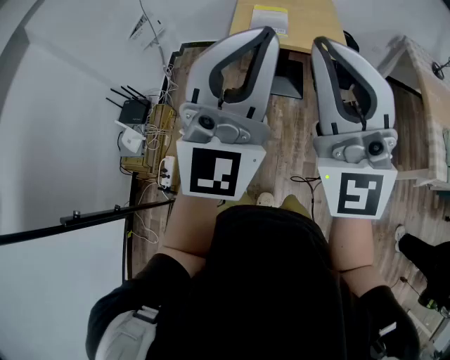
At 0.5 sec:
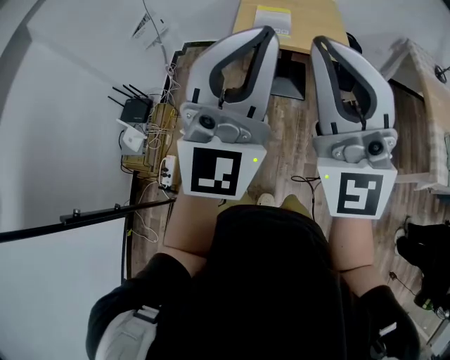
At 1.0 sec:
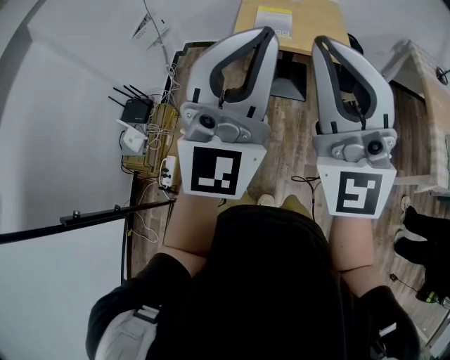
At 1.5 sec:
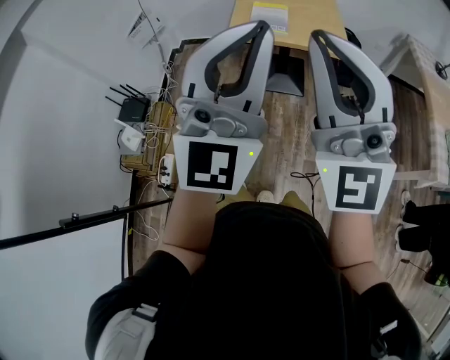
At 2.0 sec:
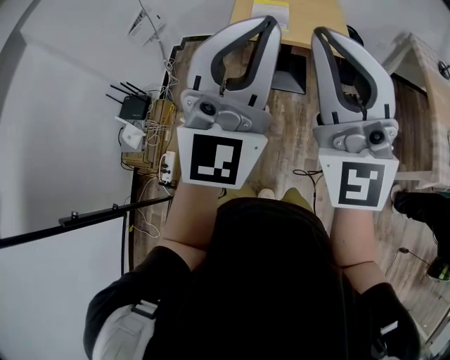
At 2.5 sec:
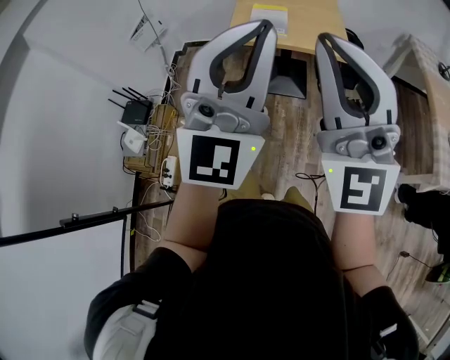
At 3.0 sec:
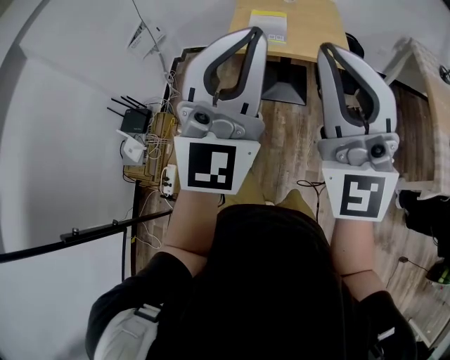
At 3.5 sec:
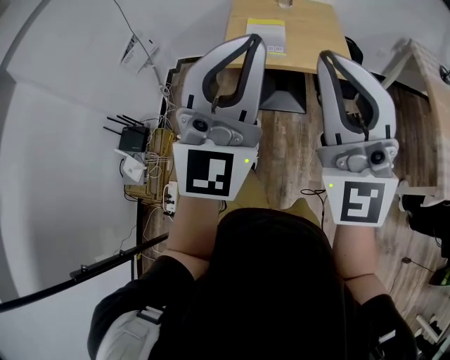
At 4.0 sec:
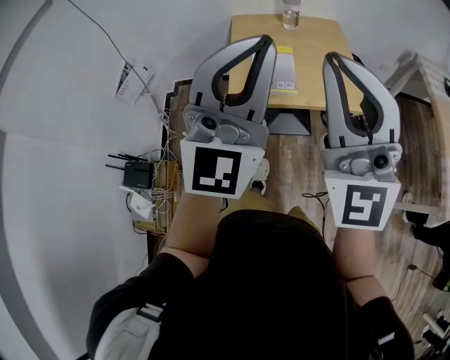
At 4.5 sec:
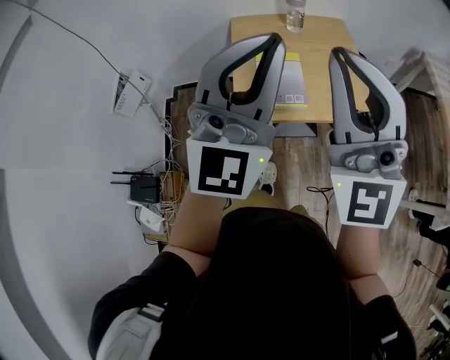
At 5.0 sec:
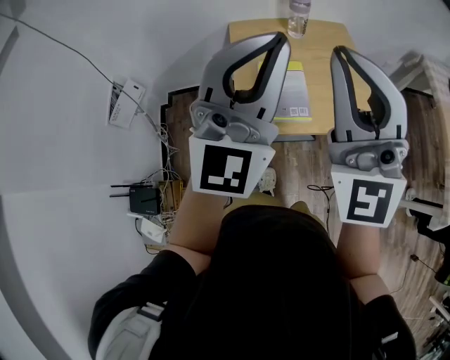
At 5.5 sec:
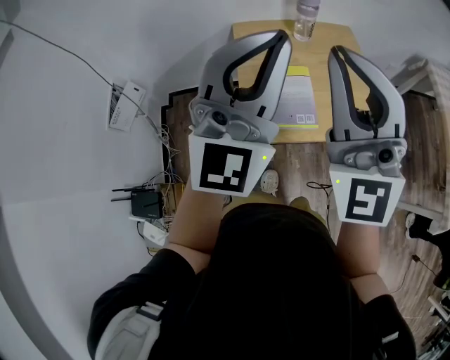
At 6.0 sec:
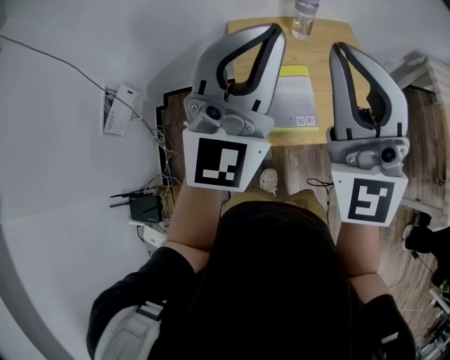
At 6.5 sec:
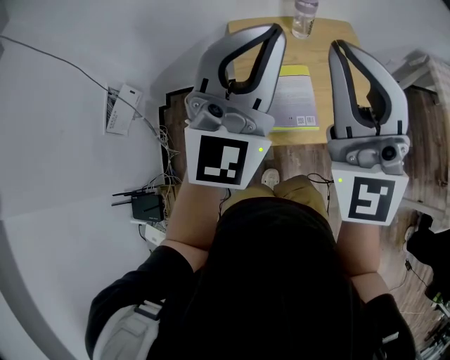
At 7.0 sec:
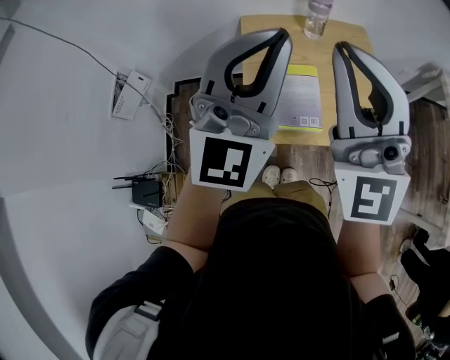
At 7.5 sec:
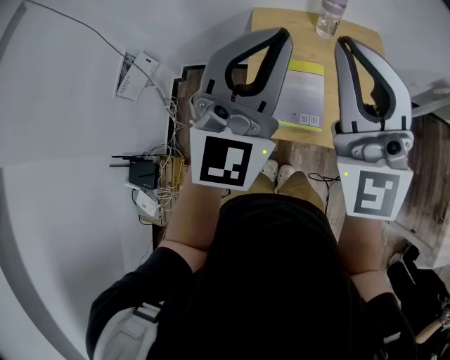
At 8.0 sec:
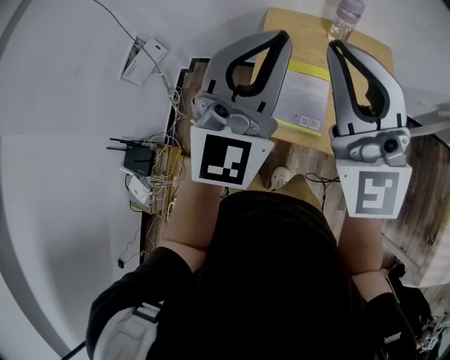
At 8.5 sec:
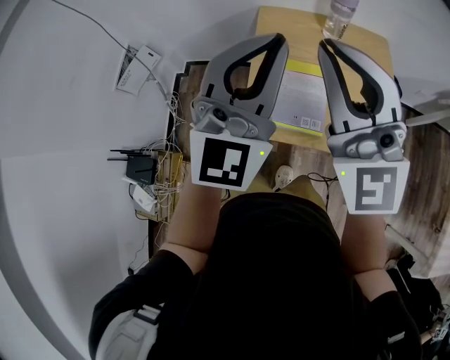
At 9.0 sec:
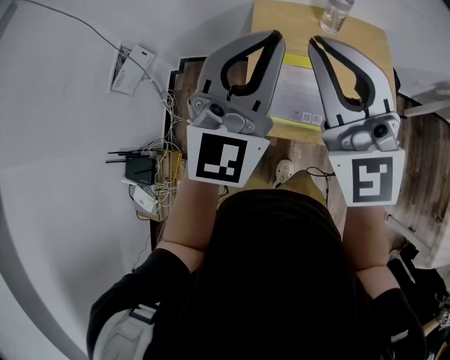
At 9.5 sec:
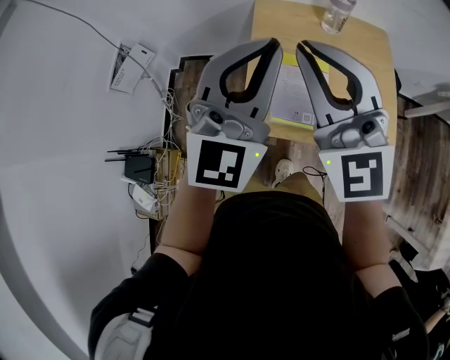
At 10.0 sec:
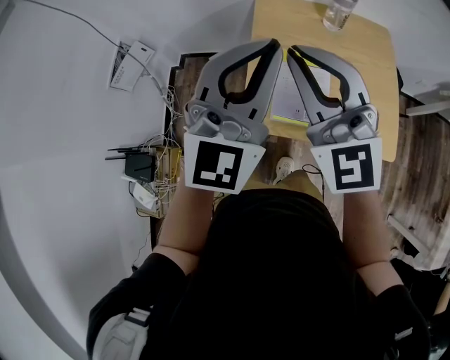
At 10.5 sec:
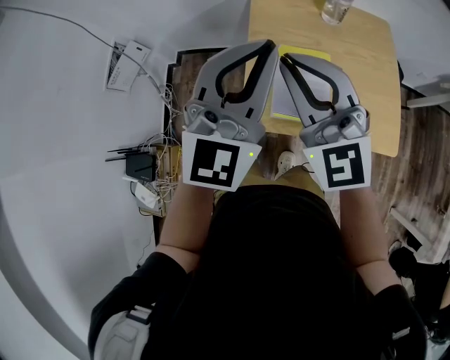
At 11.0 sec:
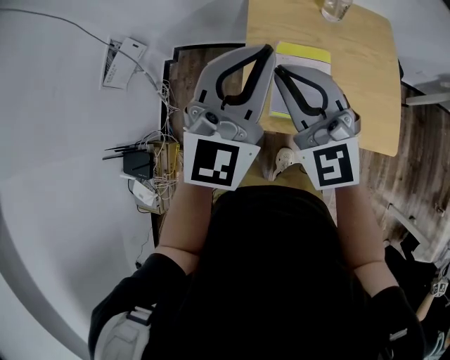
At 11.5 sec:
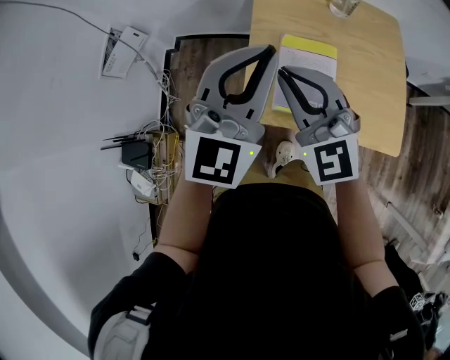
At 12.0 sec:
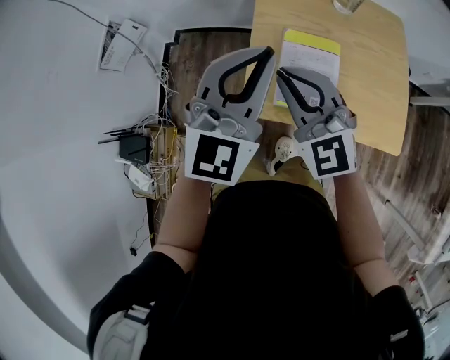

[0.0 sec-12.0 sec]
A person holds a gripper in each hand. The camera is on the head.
0.0 sec to 2.0 sec: The grippers make only small movements.
2.0 sec to 4.0 sec: Both grippers move forward, some 30 cm.
4.0 sec to 6.0 sec: Both grippers travel together forward and to the left, some 25 cm.
6.0 sec to 8.0 sec: The right gripper ends up approximately 5 cm from where it was, and changes its angle by some 20 degrees.
8.0 sec to 10.0 sec: The right gripper shifts roughly 10 cm downward and to the left, while the left gripper shifts some 5 cm downward.
10.0 sec to 12.0 sec: The left gripper moves downward, approximately 10 cm. The right gripper travels downward by some 15 cm, and changes its angle by about 20 degrees.

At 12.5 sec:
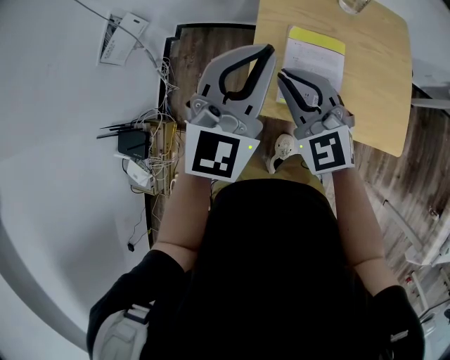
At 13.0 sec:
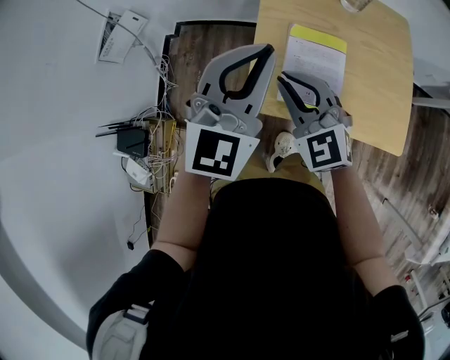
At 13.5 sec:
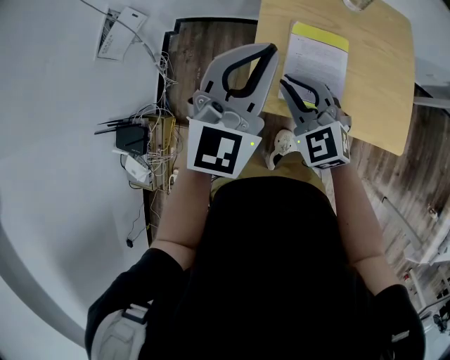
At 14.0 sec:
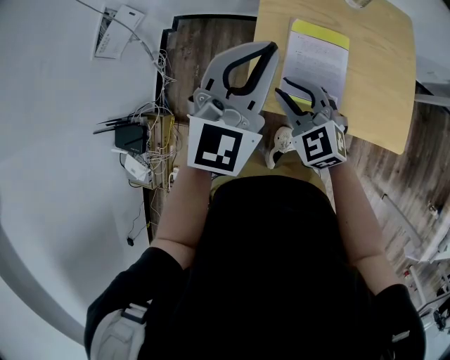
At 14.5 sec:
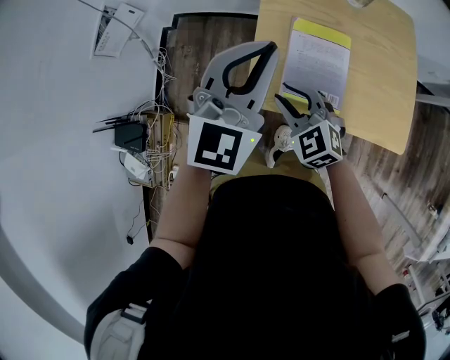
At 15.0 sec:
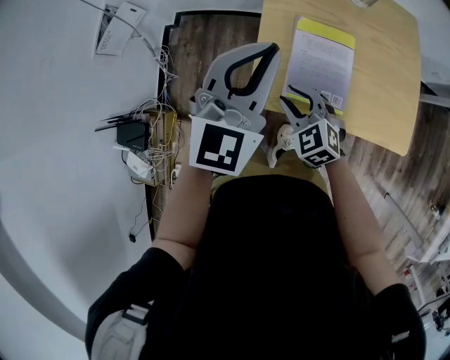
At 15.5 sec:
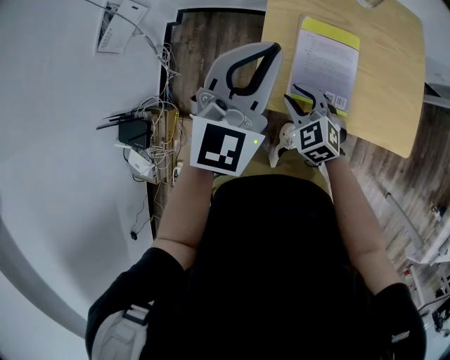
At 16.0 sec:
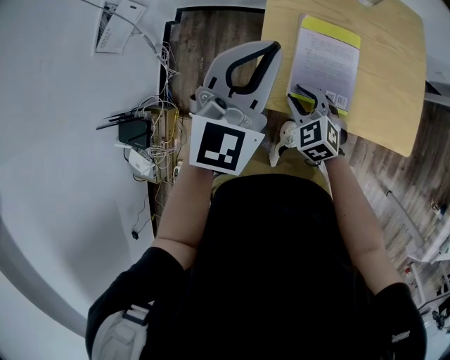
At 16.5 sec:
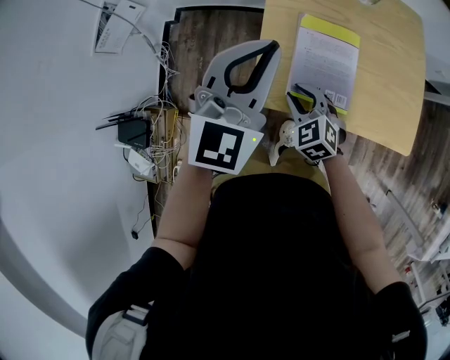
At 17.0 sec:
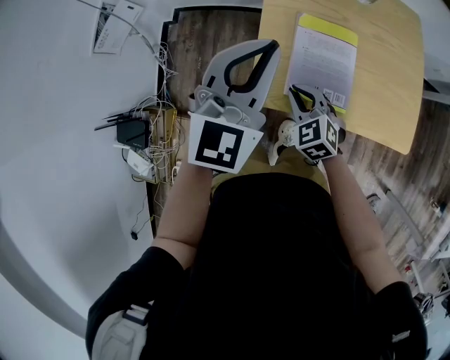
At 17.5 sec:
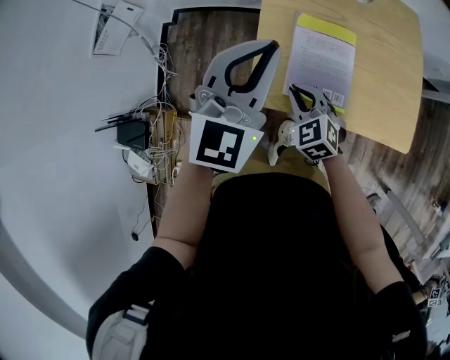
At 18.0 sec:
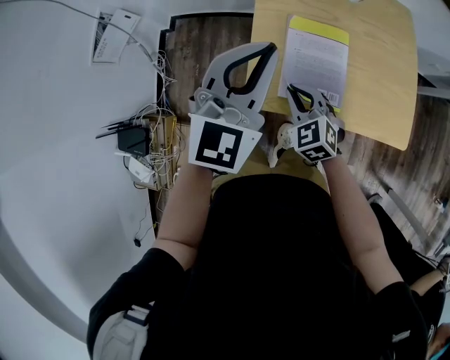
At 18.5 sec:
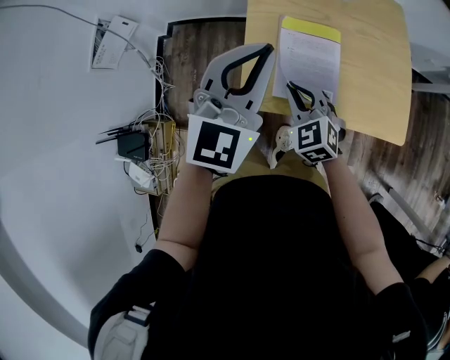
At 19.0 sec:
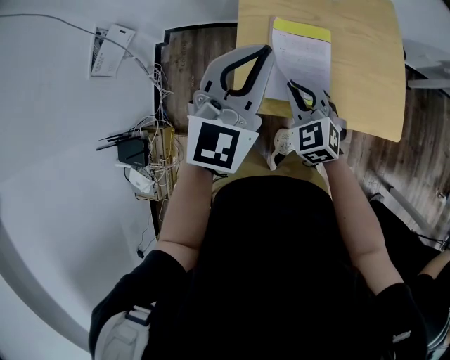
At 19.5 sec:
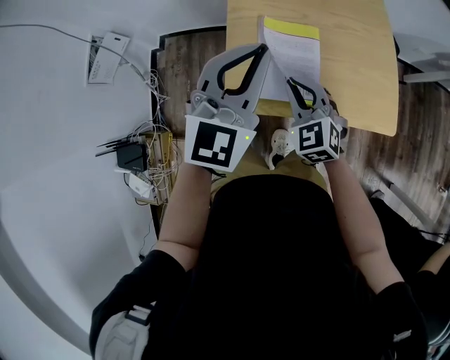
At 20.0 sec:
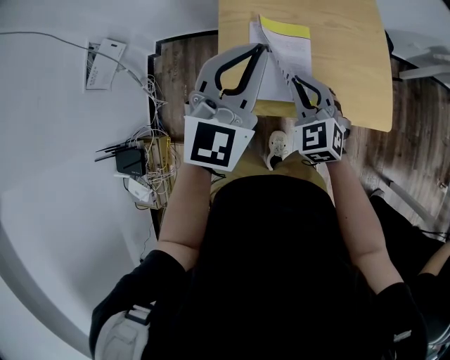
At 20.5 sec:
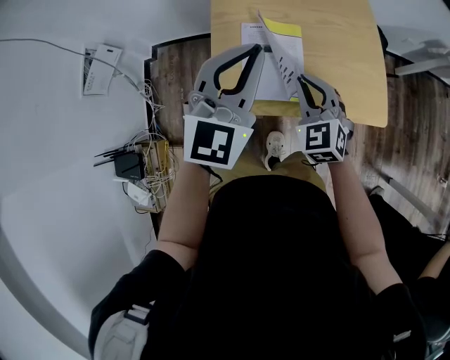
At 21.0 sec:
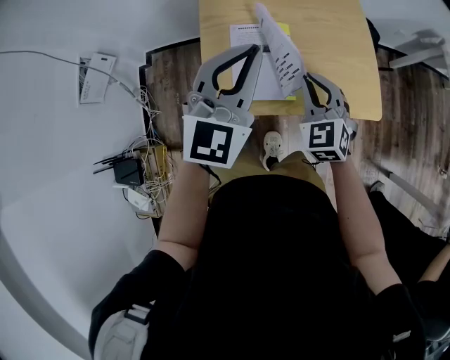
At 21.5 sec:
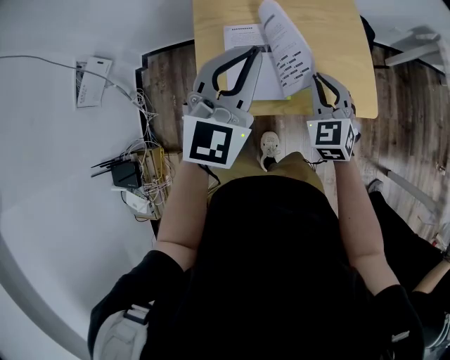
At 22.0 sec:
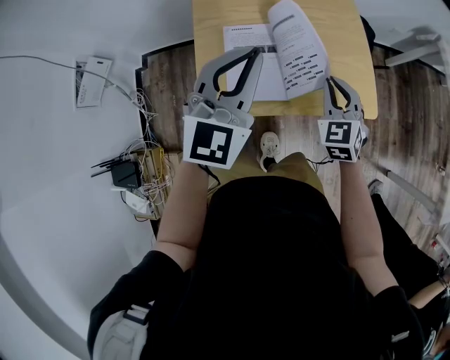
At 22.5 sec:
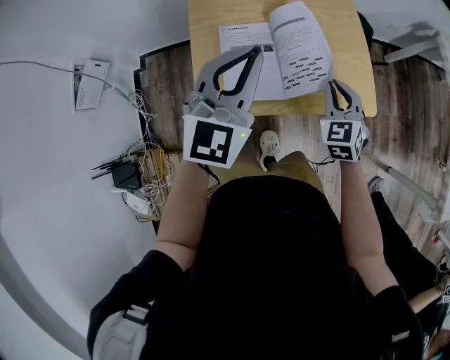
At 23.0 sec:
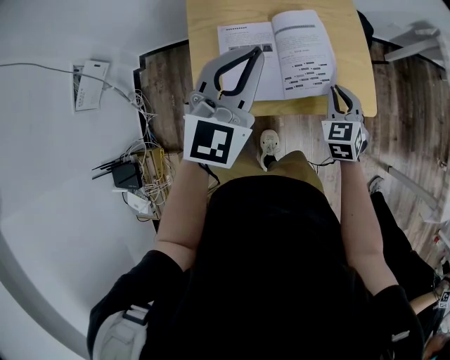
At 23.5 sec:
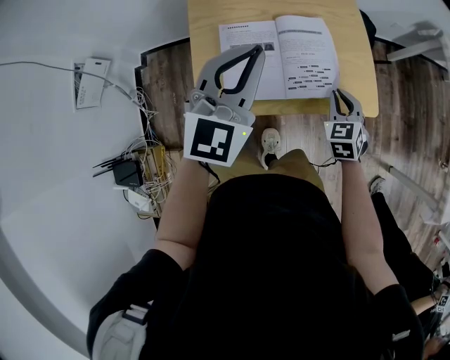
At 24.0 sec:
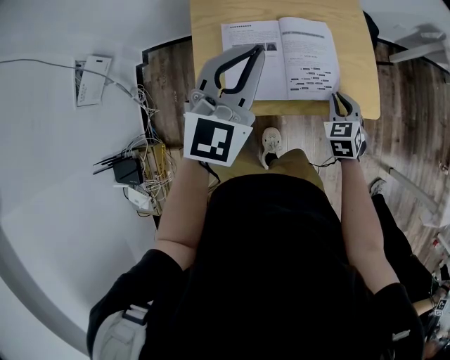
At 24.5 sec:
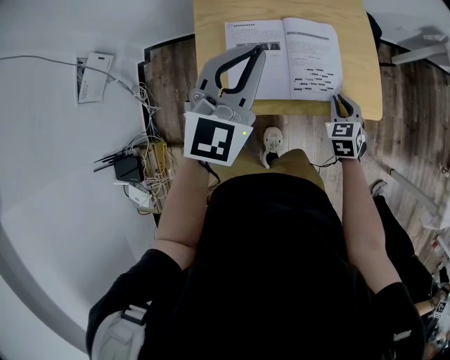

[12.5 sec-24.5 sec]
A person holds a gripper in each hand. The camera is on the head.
12.5 sec to 14.5 sec: The right gripper heads downward, covering about 15 cm, and opens its fingers.
14.5 sec to 16.5 sec: The right gripper heads downward, covering approximately 5 cm.
16.5 sec to 18.5 sec: The right gripper heads upward, covering roughly 5 cm, and closes up.
18.5 sec to 20.5 sec: The right gripper heads to the right and upward, covering roughly 15 cm, while the left gripper goes some 10 cm to the right.
20.5 sec to 22.5 sec: The right gripper is displaced to the right by some 15 cm.
22.5 sec to 24.5 sec: The right gripper heads downward, covering about 10 cm.

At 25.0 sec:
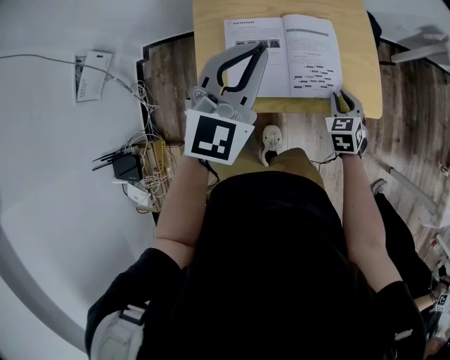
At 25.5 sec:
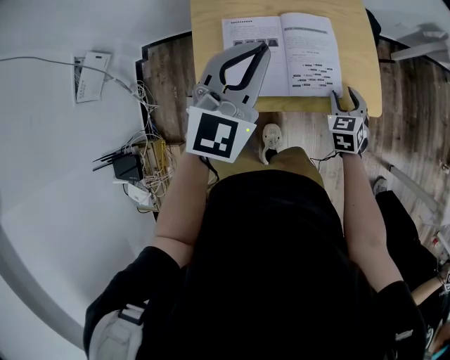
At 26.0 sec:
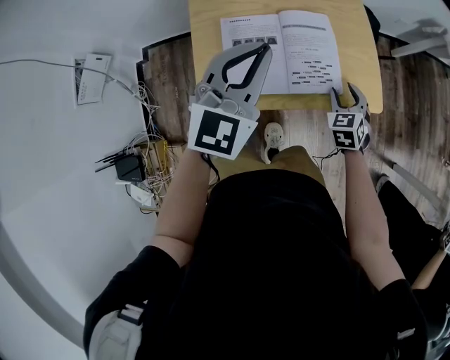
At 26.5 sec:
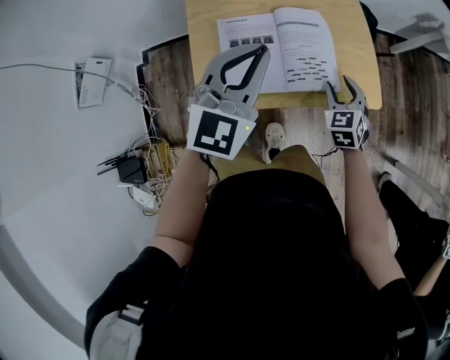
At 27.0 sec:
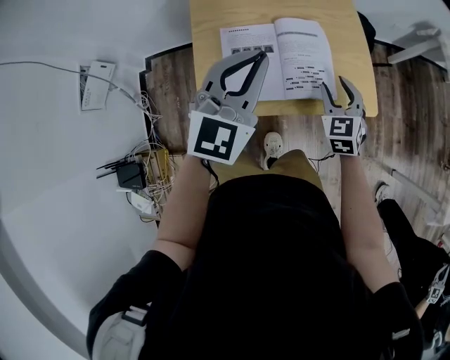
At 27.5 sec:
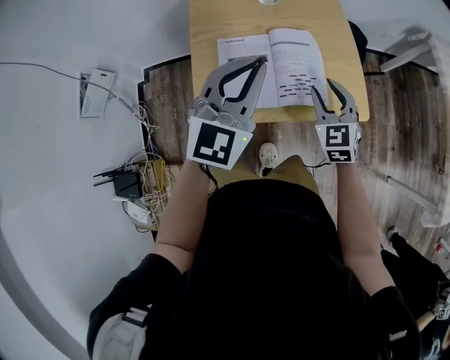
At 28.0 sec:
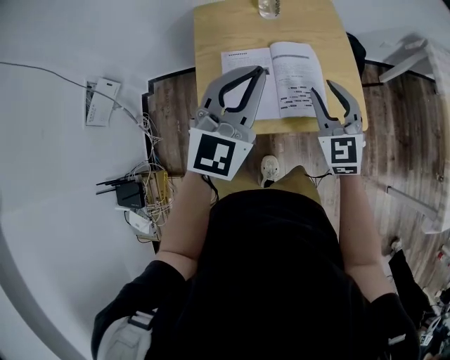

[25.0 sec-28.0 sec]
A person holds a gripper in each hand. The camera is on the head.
25.0 sec to 26.5 sec: The right gripper opens up.
26.5 sec to 28.0 sec: The right gripper moves upward, about 15 cm, and rotates approximately 30 degrees. Meanwhile the left gripper is displaced upward by roughly 5 cm.
